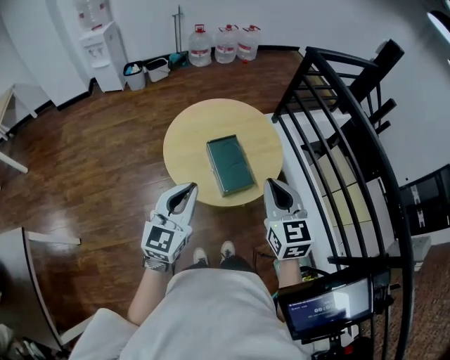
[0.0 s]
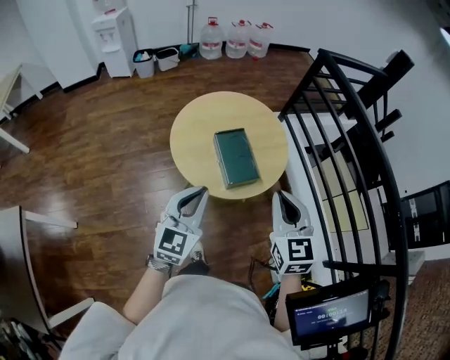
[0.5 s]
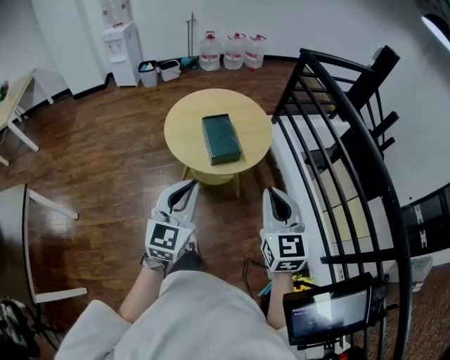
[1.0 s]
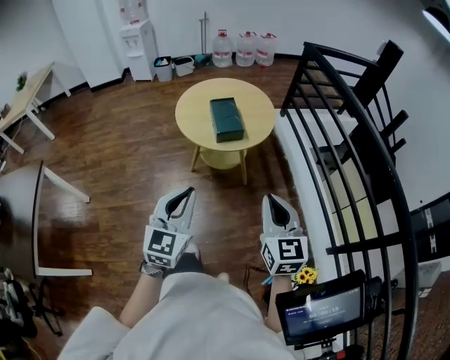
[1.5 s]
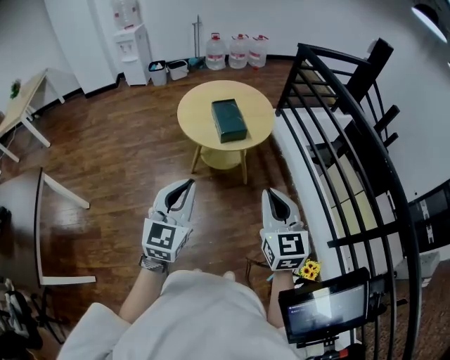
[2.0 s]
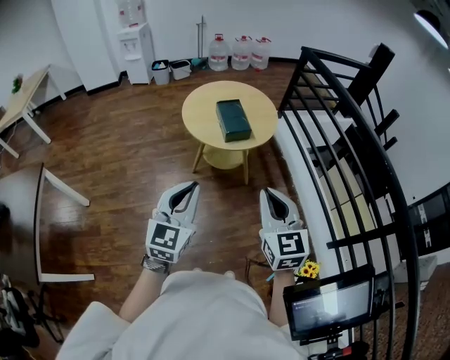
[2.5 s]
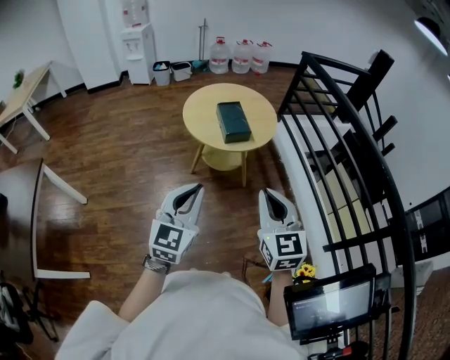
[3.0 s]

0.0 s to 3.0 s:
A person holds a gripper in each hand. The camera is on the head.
0.0 to 1.5 s: The left gripper moves backward, about 25 cm; the right gripper goes about 30 cm backward and to the right.
1.5 to 3.0 s: The right gripper is displaced to the left by about 5 cm.

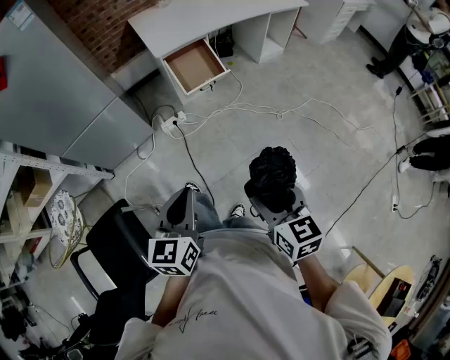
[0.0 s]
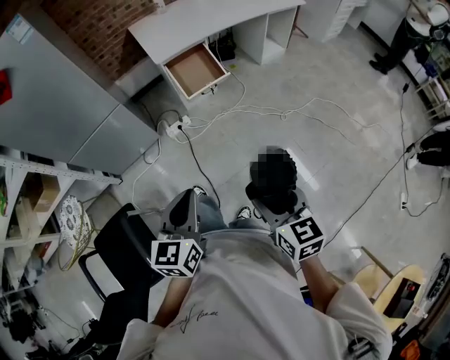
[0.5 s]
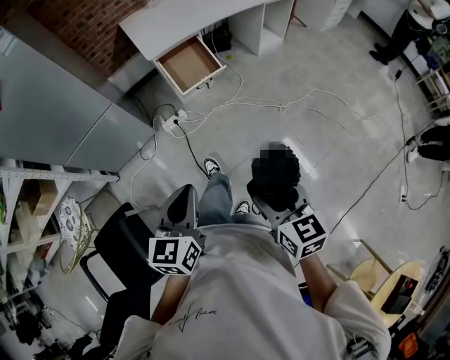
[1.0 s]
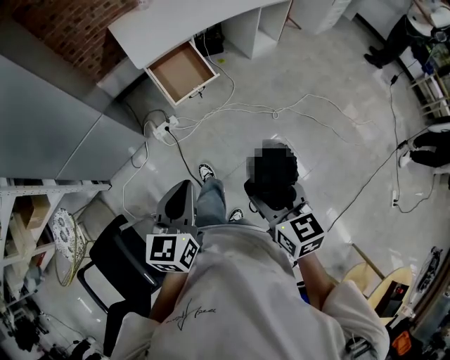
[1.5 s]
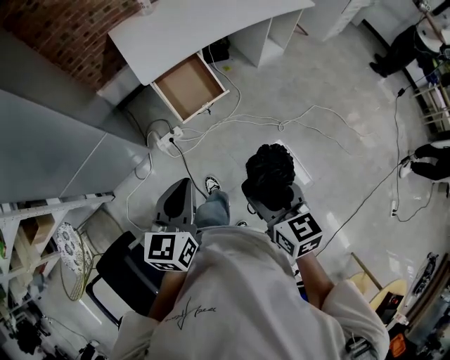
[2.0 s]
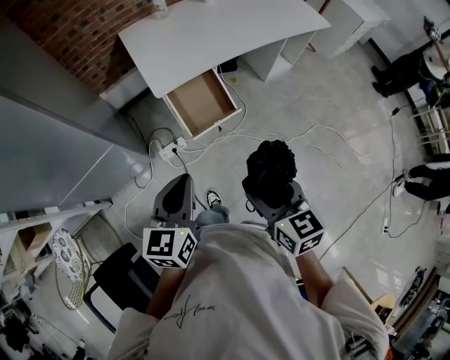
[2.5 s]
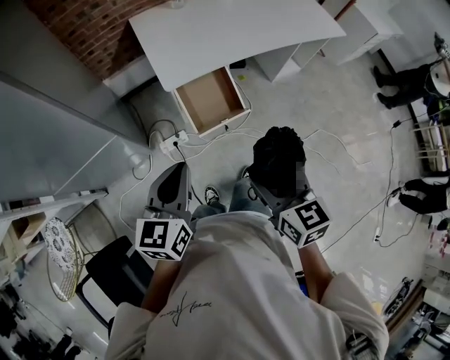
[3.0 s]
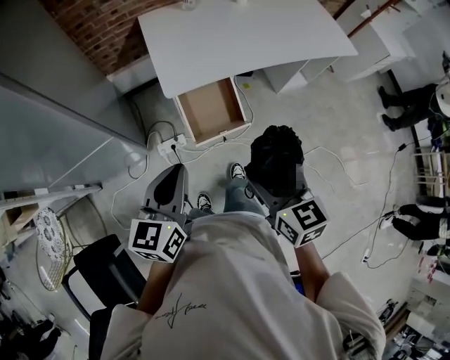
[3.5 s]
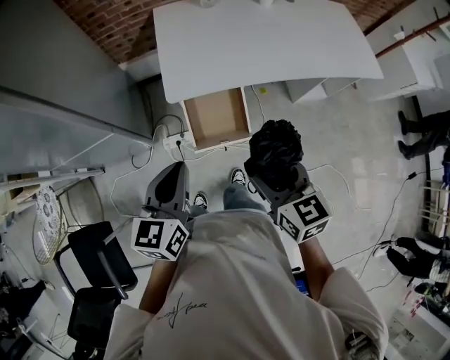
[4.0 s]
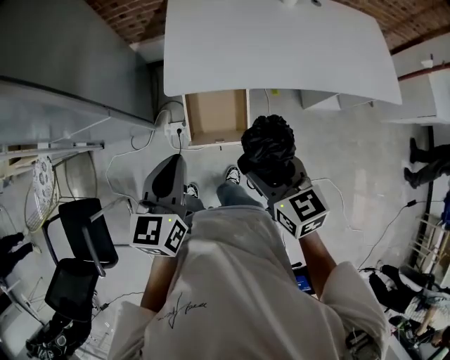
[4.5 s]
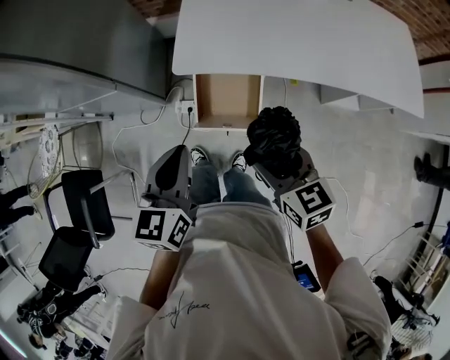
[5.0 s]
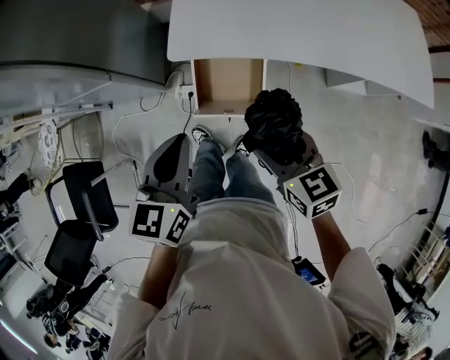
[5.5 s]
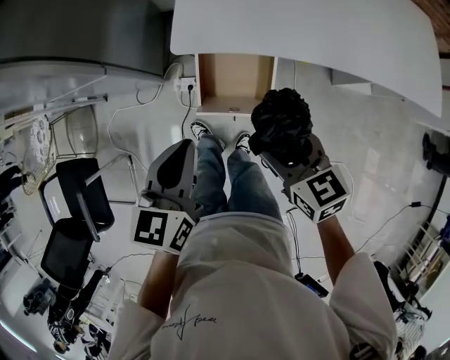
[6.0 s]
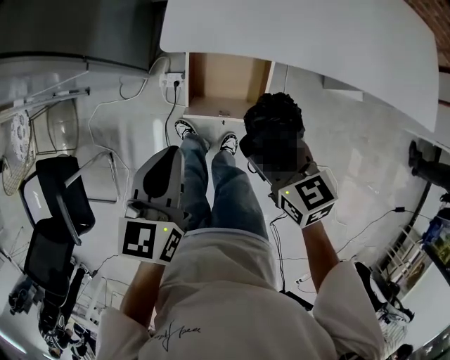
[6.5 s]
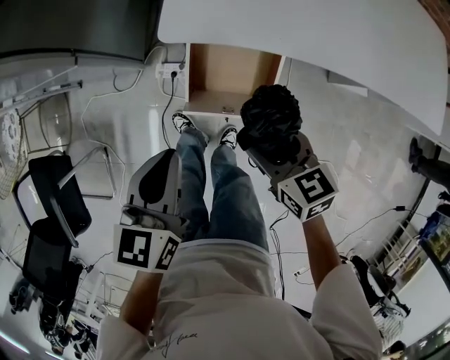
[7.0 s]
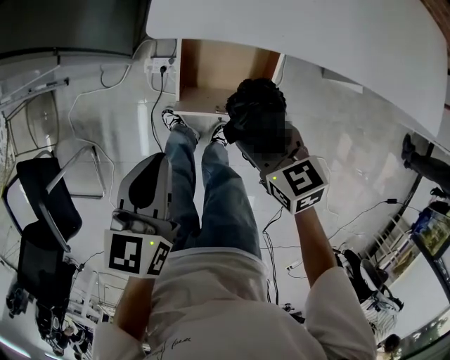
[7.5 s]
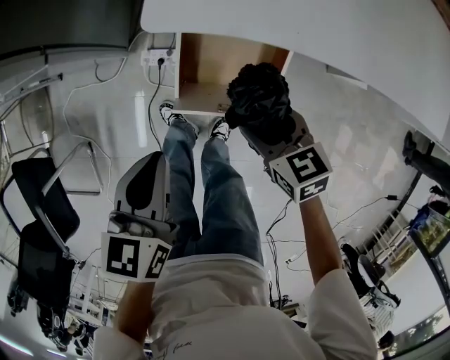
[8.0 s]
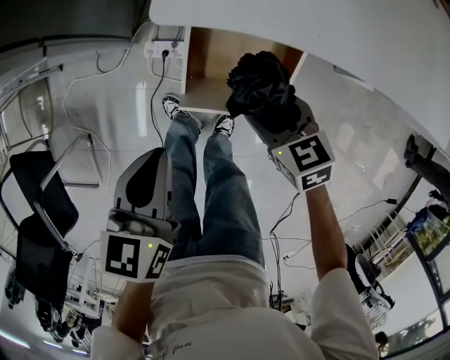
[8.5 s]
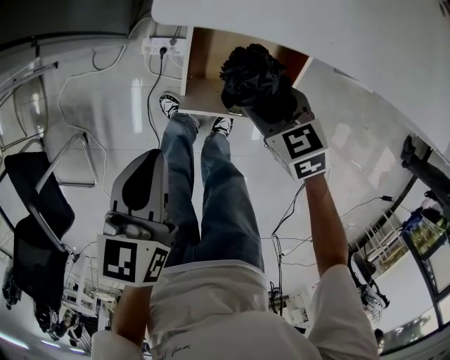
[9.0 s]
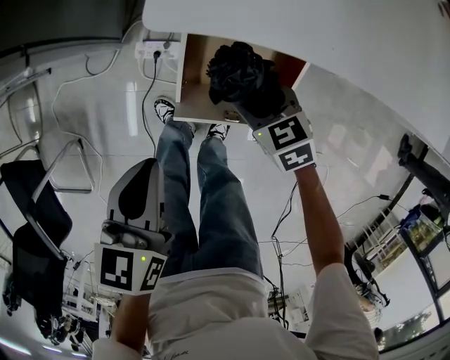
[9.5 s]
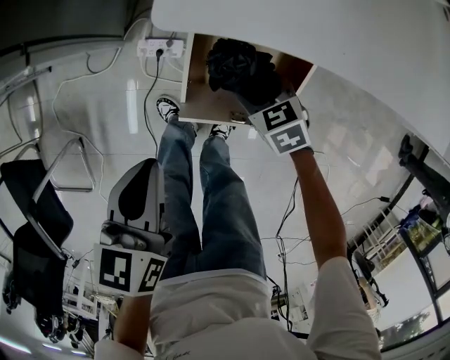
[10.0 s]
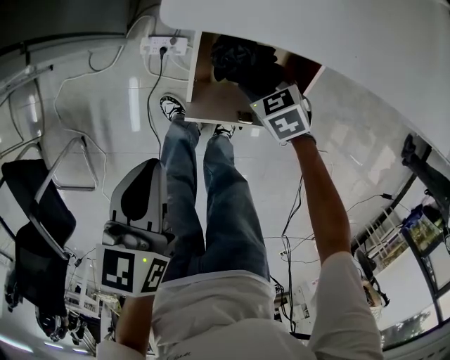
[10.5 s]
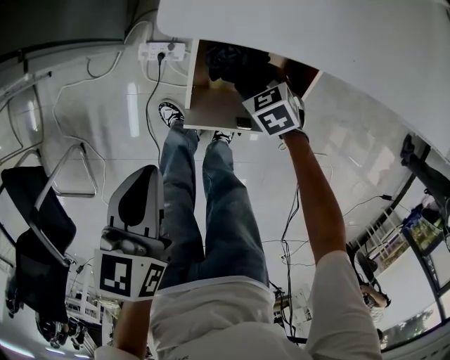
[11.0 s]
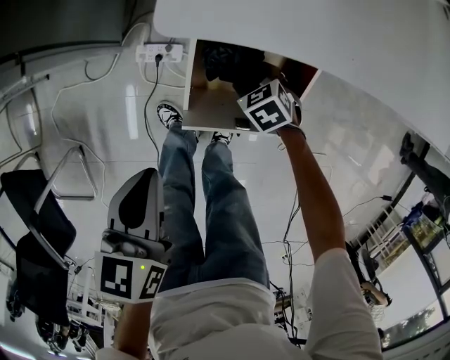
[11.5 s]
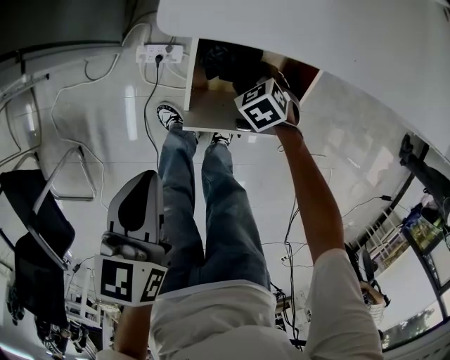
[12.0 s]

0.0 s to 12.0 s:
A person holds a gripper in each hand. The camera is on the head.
0.0 to 2.0 s: Both grippers travel together forward, some 25 cm.
2.0 to 4.0 s: Both grippers travel together forward, about 30 cm. The right gripper swivels some 20 degrees. Meanwhile the left gripper turns by roughly 20 degrees.
4.0 to 6.0 s: The right gripper heads downward and forward, covering some 15 cm, and swivels roughly 30 degrees. The left gripper heads downward and to the right, covering some 10 cm.
6.0 to 8.0 s: The right gripper shifts roughly 20 cm downward and forward, while the left gripper is displaced downward by about 15 cm.
8.0 to 10.0 s: The right gripper travels downward and forward by about 15 cm; the left gripper is displaced downward by approximately 5 cm.
10.0 to 12.0 s: The right gripper goes approximately 10 cm downward.

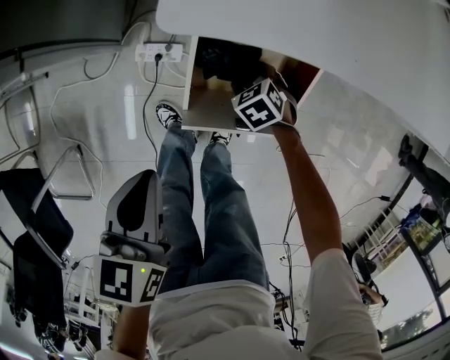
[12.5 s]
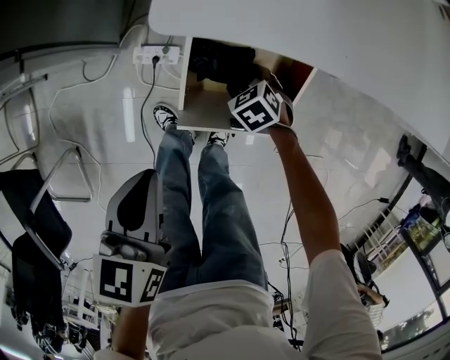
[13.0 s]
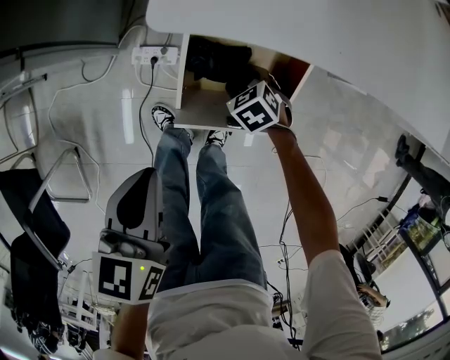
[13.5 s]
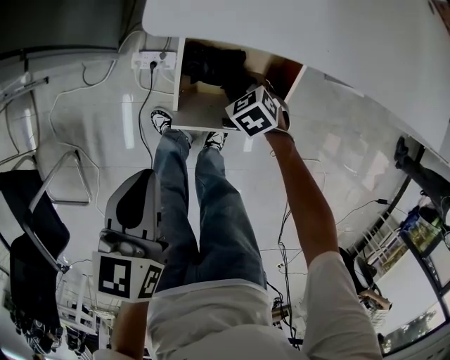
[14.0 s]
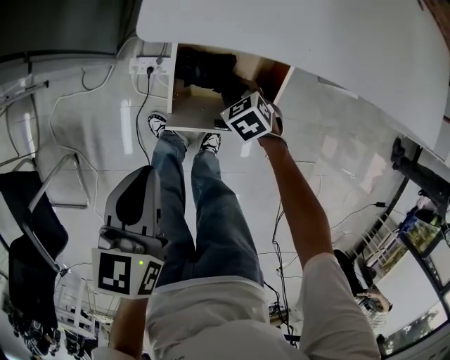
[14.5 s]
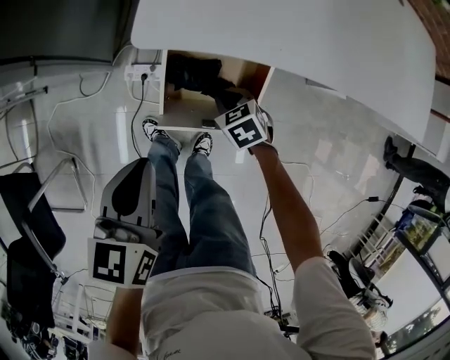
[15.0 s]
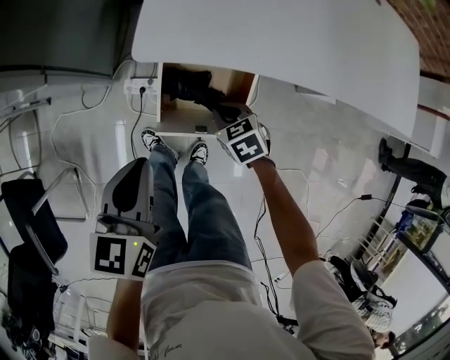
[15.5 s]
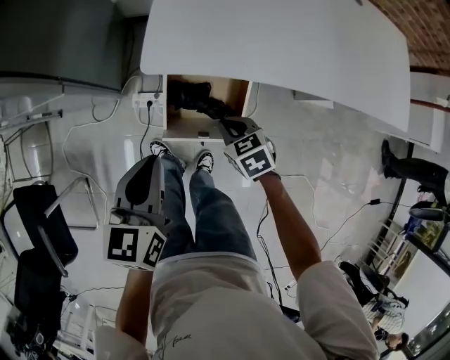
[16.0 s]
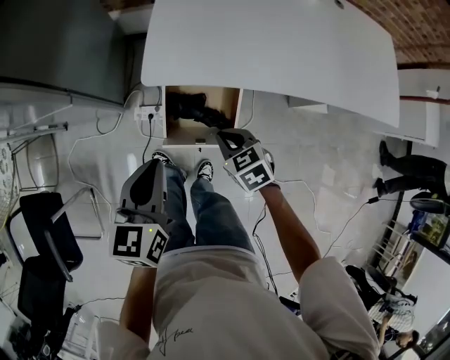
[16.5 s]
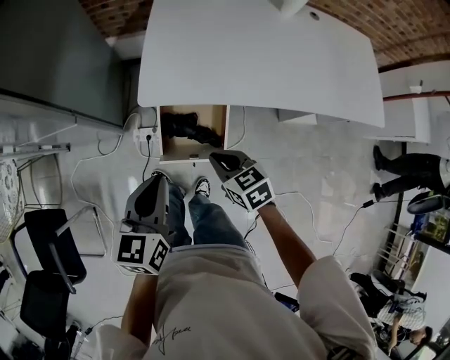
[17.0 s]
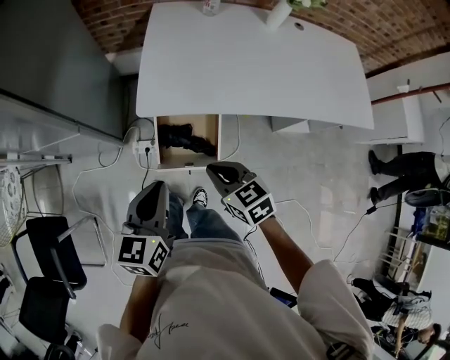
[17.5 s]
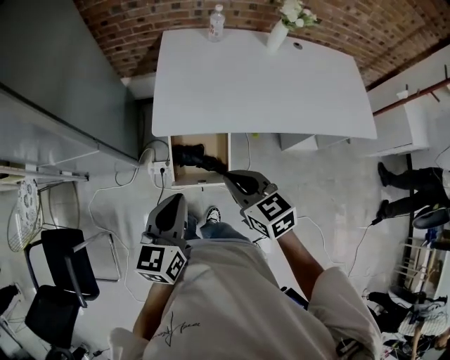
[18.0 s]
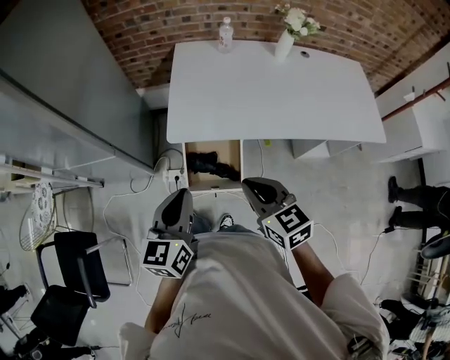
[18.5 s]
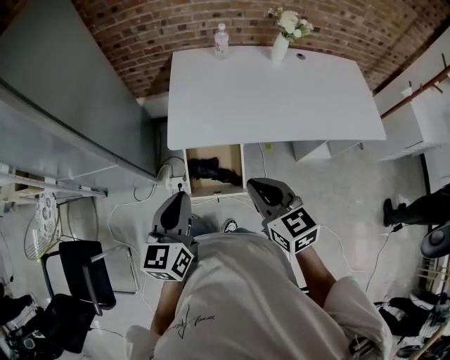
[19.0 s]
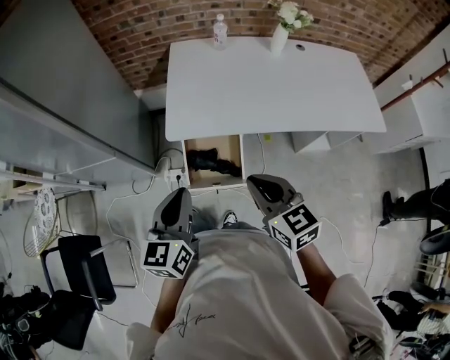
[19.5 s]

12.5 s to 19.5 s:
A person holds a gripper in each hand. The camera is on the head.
12.5 to 14.5 s: The left gripper shifts by roughly 5 cm. Meanwhile the right gripper changes place by approximately 5 cm, and closes its fingers.
14.5 to 16.0 s: The right gripper heads upward, covering approximately 20 cm, while the left gripper heads upward, covering some 10 cm.
16.0 to 17.5 s: The right gripper travels upward by about 20 cm, while the left gripper is displaced upward and backward by some 10 cm.
17.5 to 19.5 s: The right gripper travels upward by roughly 15 cm. Meanwhile the left gripper shifts about 5 cm upward.

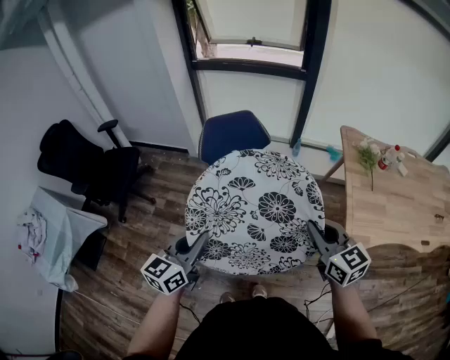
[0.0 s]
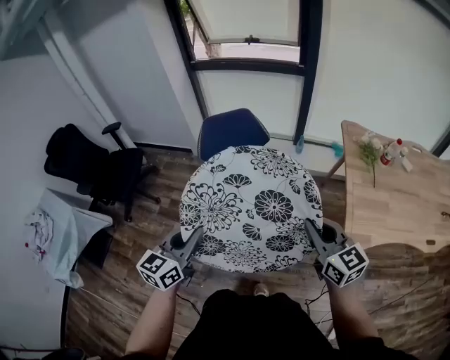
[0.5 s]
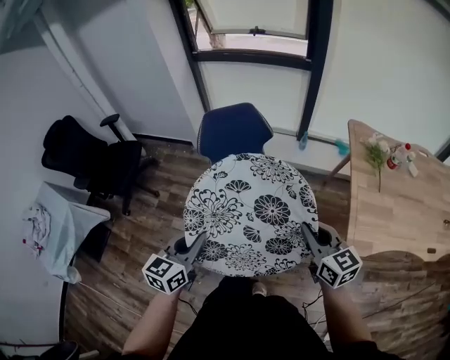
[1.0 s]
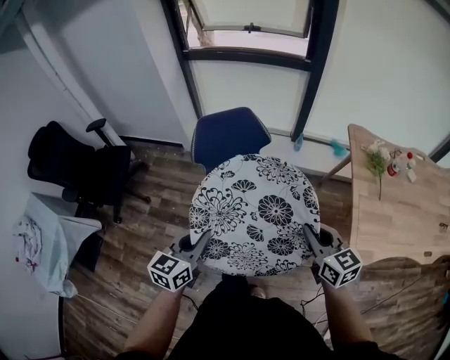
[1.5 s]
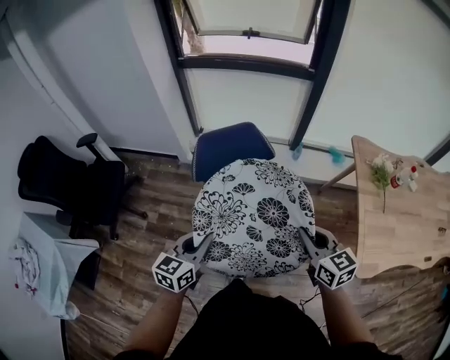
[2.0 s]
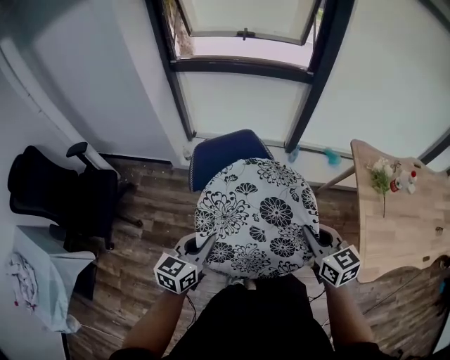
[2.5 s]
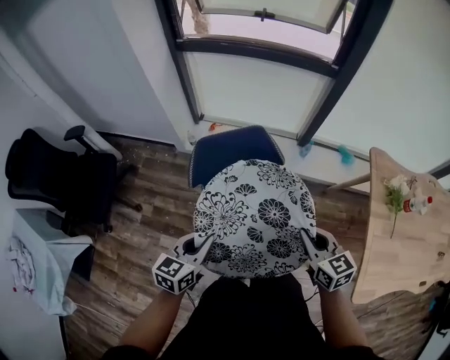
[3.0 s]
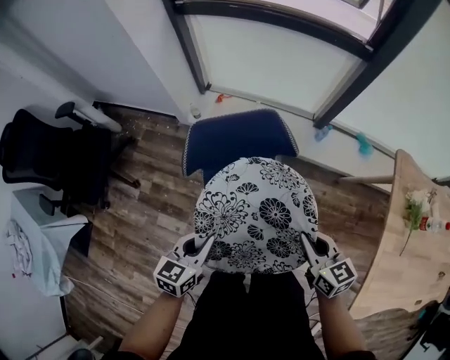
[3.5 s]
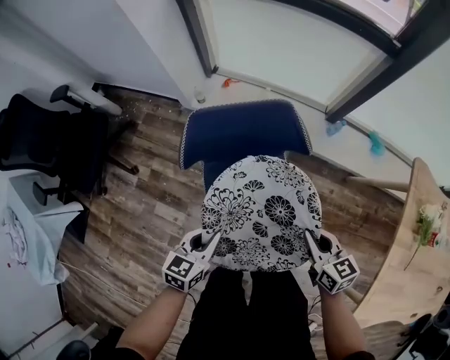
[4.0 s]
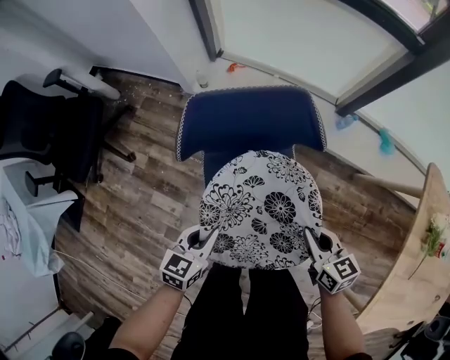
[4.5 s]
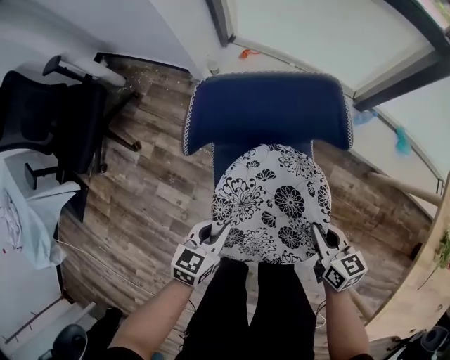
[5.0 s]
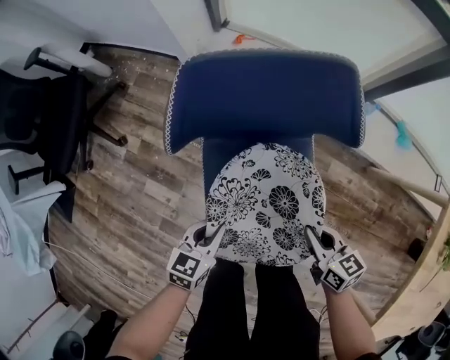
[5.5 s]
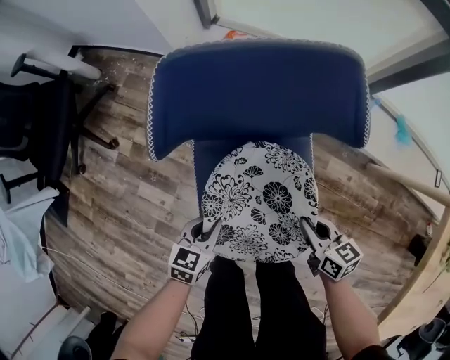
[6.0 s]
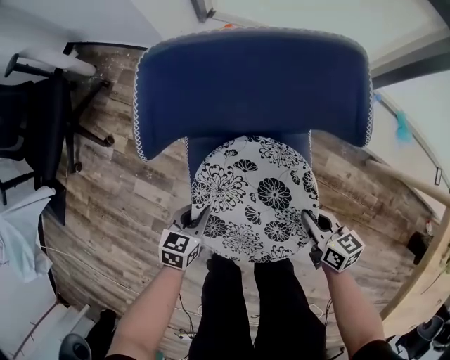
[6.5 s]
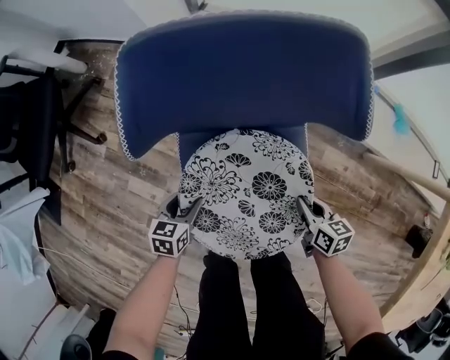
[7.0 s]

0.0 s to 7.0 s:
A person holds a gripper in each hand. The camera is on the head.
0.0 to 2.0 s: The grippers stay close to where they were, moving slightly.
2.0 to 3.5 s: The two grippers go about 10 cm upward.
3.5 to 5.0 s: Both grippers travel together downward, approximately 5 cm.
5.0 to 7.0 s: The grippers both shift downward by roughly 10 cm. The left gripper opens its fingers.
